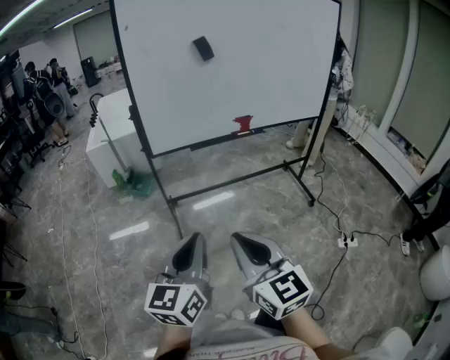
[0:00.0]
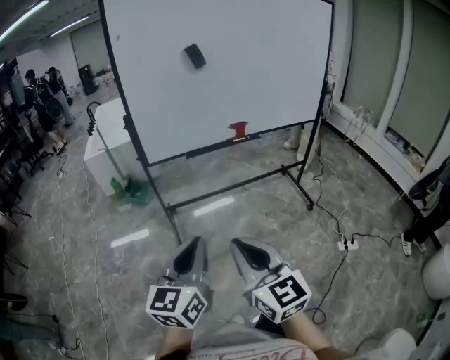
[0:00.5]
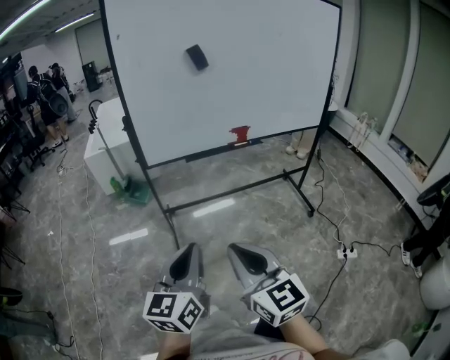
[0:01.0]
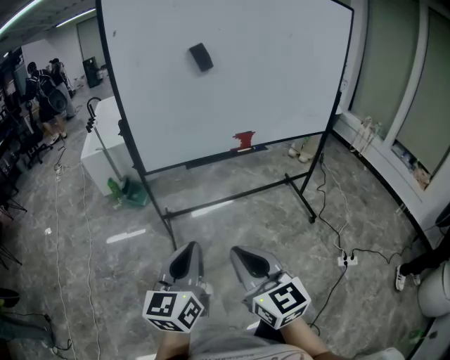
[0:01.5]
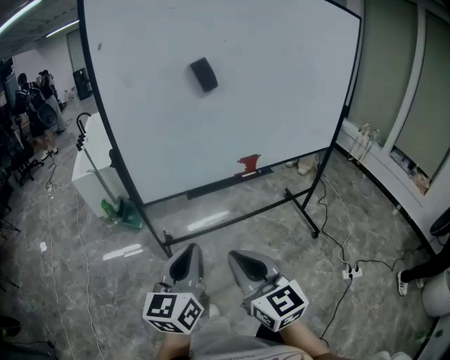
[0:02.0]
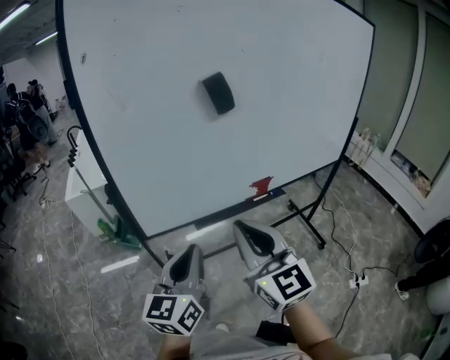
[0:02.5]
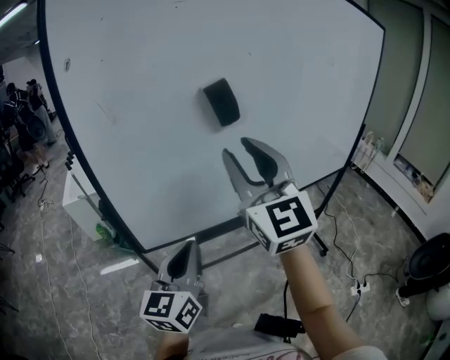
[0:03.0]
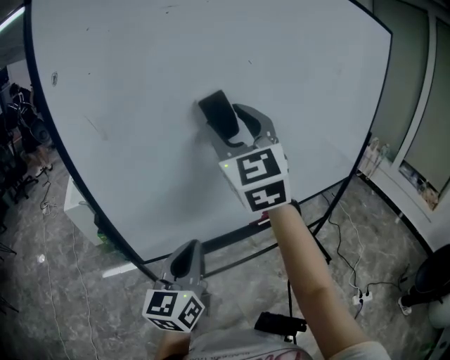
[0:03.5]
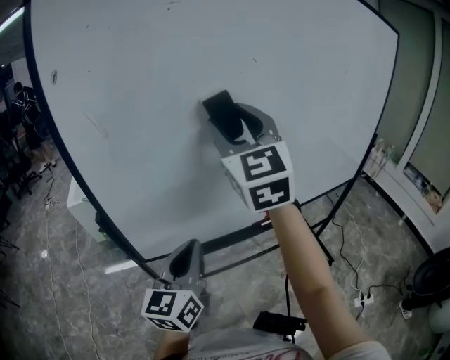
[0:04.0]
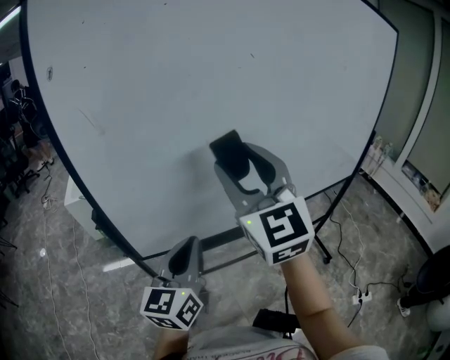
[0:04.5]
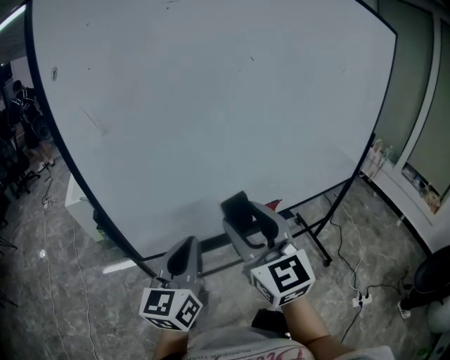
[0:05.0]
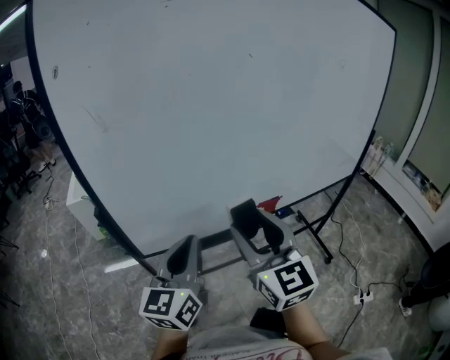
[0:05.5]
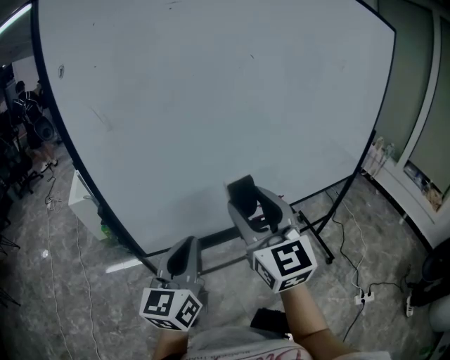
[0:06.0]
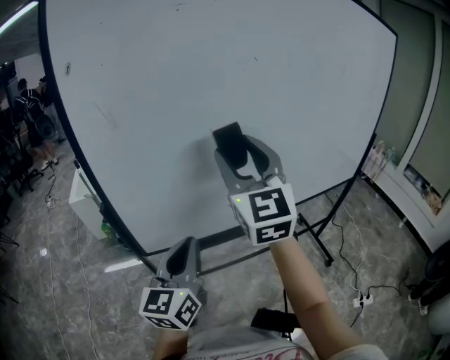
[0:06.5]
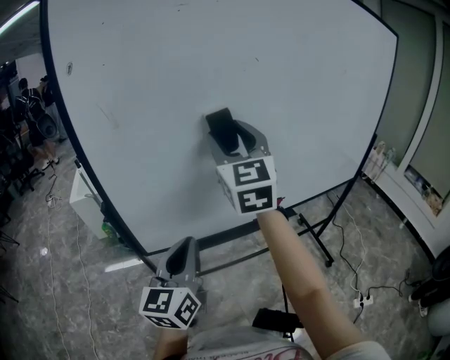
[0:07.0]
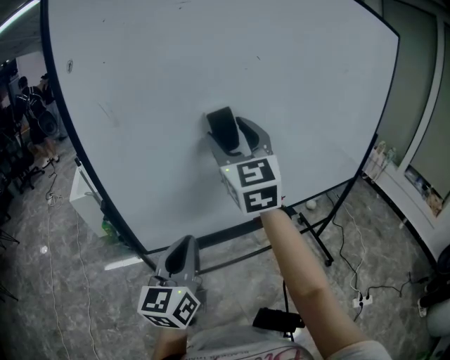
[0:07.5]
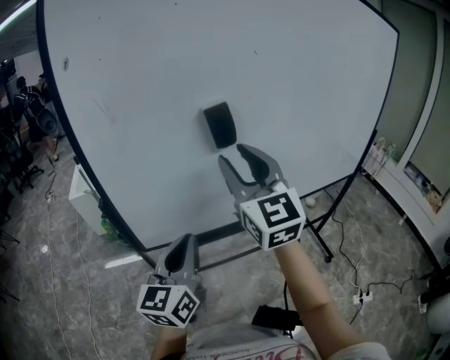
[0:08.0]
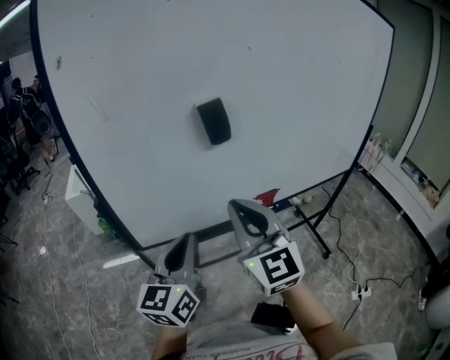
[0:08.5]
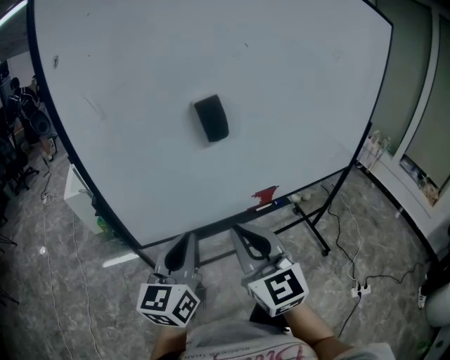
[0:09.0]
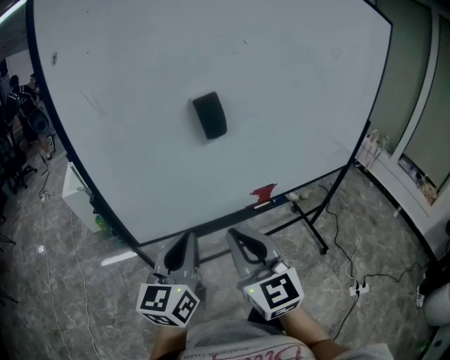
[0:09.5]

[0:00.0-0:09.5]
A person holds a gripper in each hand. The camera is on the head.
0:00.0 to 0:02.0: The grippers both shift forward by about 20 cm.
0:02.0 to 0:04.0: The left gripper is displaced forward by some 20 cm. Meanwhile the right gripper goes about 50 cm forward and upward, turns by some 30 degrees, and opens.
0:04.0 to 0:05.5: The right gripper moves downward and backward, about 20 cm, and swivels some 20 degrees.
0:05.5 to 0:07.5: The right gripper heads forward and upward, covering roughly 20 cm.
0:07.5 to 0:09.5: The right gripper is displaced backward and downward by some 25 cm, and closes its fingers.

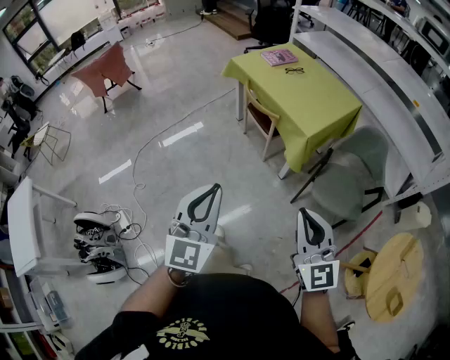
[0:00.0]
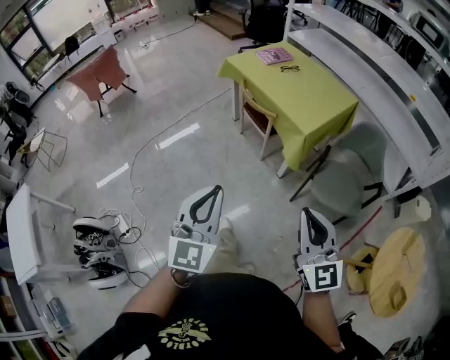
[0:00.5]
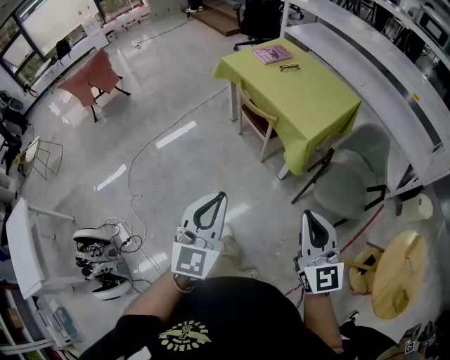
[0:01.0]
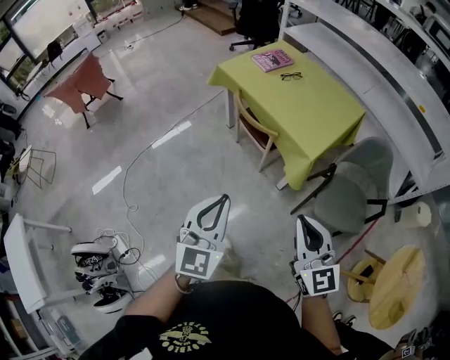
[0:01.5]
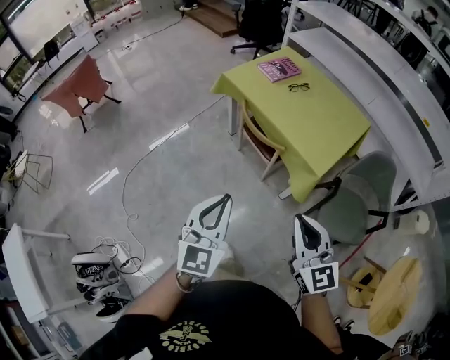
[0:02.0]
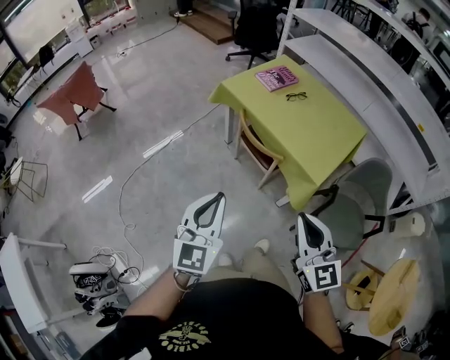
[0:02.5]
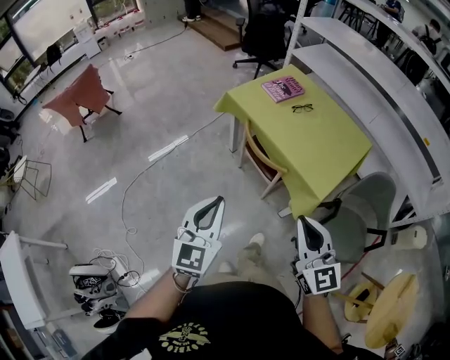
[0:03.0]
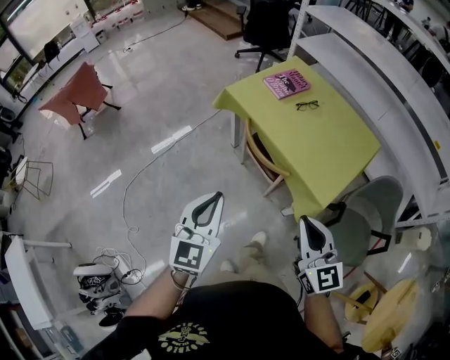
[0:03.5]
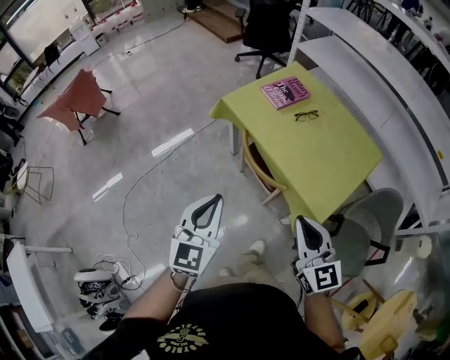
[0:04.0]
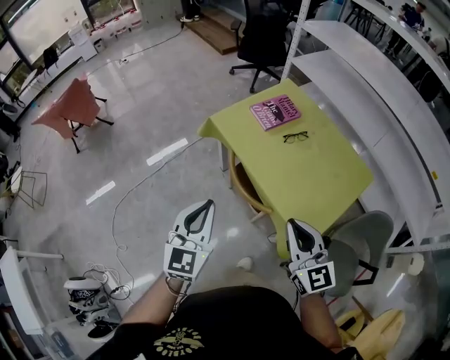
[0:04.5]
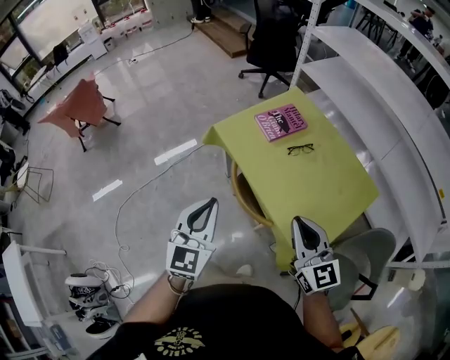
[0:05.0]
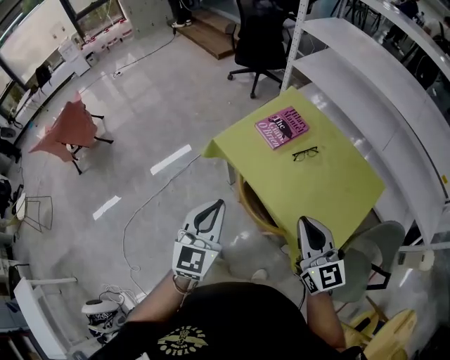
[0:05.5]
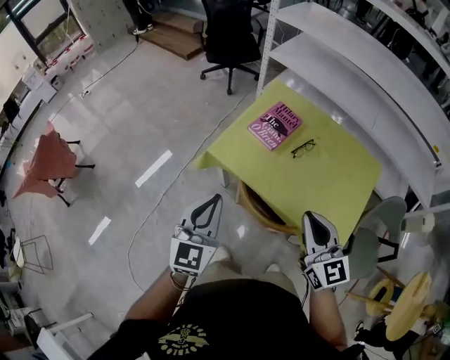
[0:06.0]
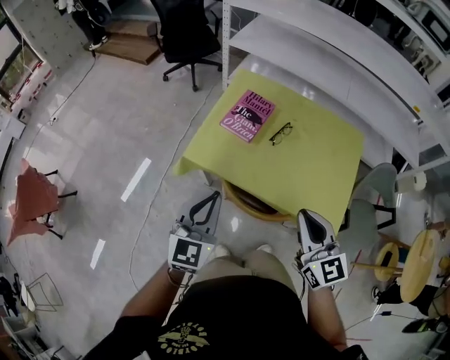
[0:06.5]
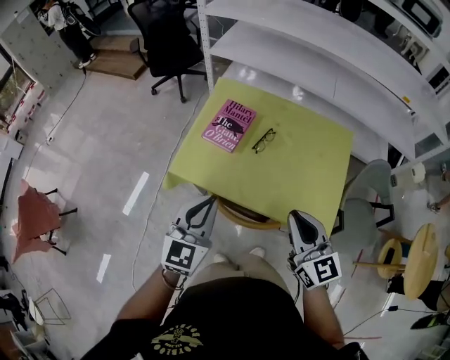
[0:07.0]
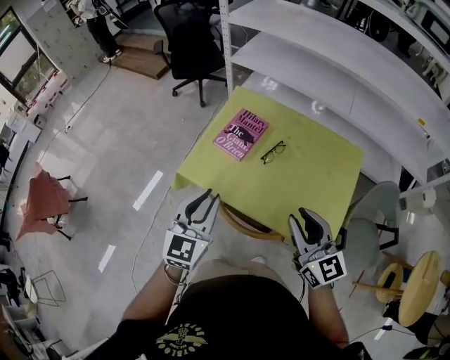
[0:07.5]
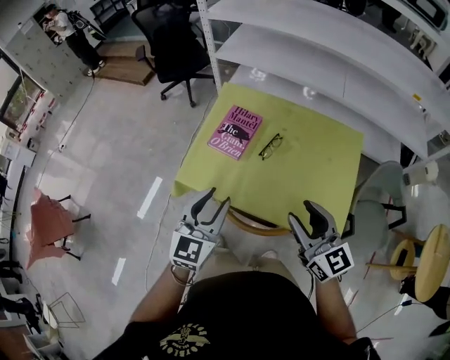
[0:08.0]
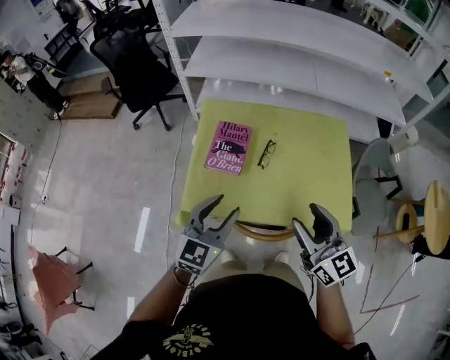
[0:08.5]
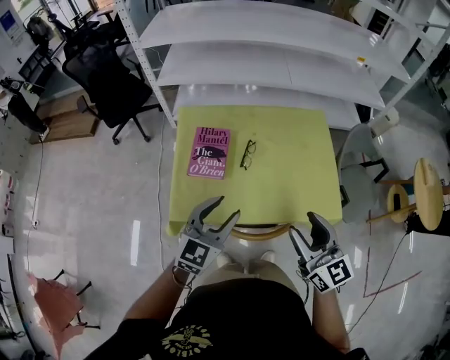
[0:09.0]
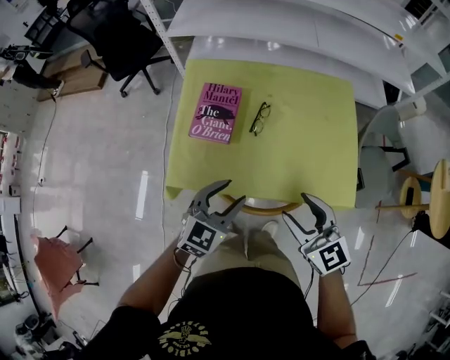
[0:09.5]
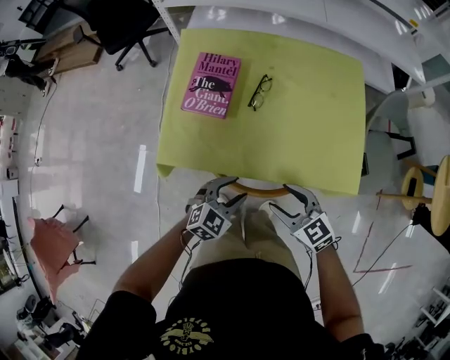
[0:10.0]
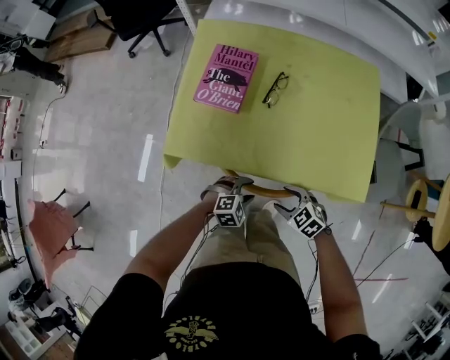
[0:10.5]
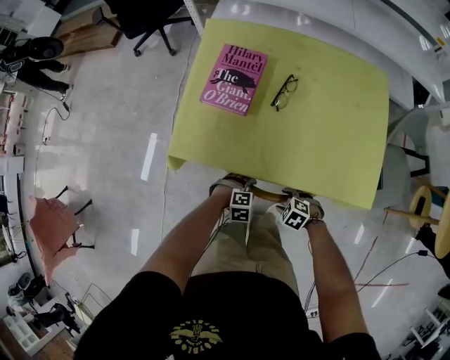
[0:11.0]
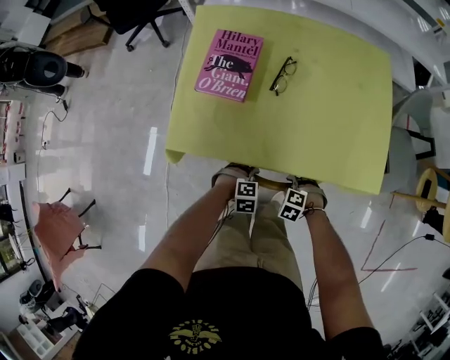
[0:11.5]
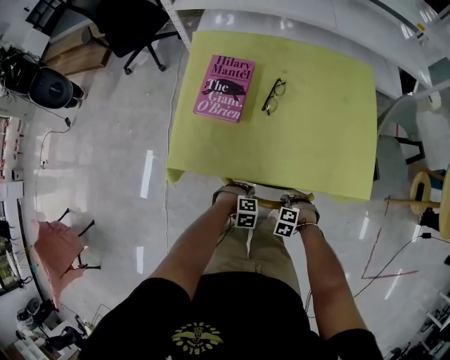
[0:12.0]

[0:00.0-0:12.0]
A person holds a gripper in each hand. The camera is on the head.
0:00.0 to 0:02.0: The grippers both shift forward by approximately 25 cm.
0:02.0 to 0:04.0: Both grippers move forward, some 20 cm.
0:04.0 to 0:06.0: Both grippers move forward, approximately 30 cm.
0:06.0 to 0:08.0: The left gripper travels to the right and forward by about 15 cm, rotates about 20 degrees, and opens up, while the right gripper goes some 10 cm to the right and forward, and opens its fingers.
0:08.0 to 0:10.0: The two grippers go about 25 cm downward. The right gripper rotates roughly 30 degrees; the left gripper changes its angle by approximately 50 degrees.
0:10.0 to 0:12.0: The two grippers go some 25 cm downward. The right gripper points its fingers some 50 degrees further downward; the left gripper points its fingers approximately 40 degrees further downward.

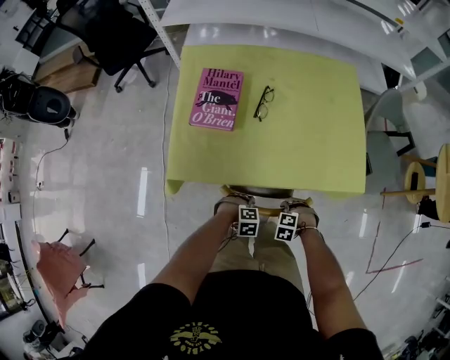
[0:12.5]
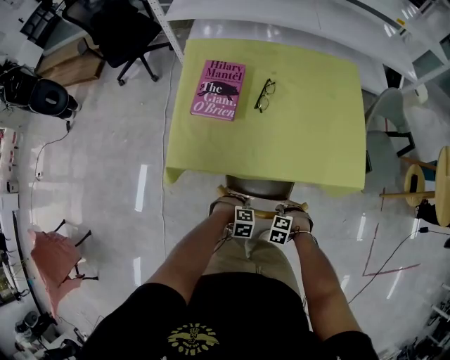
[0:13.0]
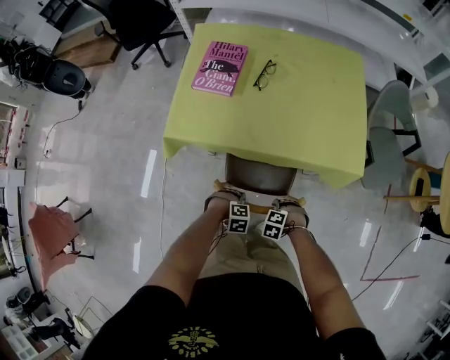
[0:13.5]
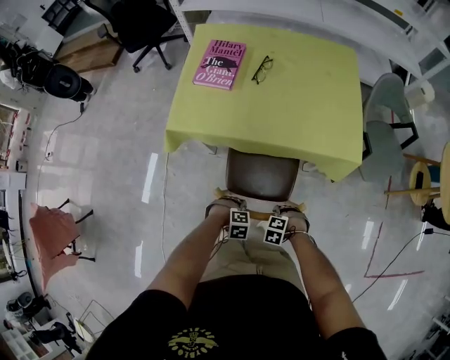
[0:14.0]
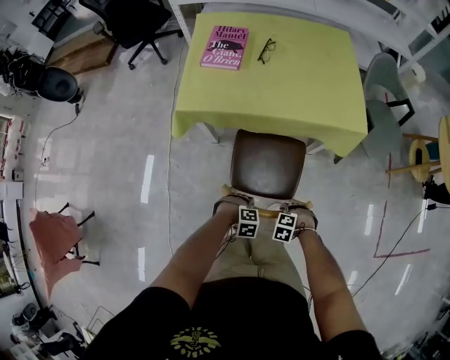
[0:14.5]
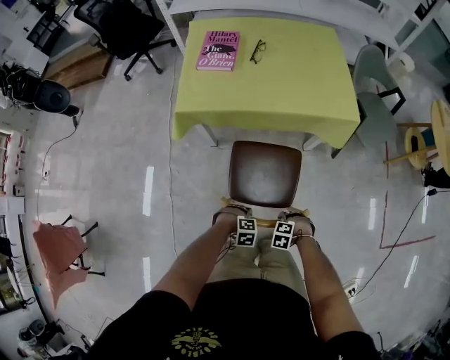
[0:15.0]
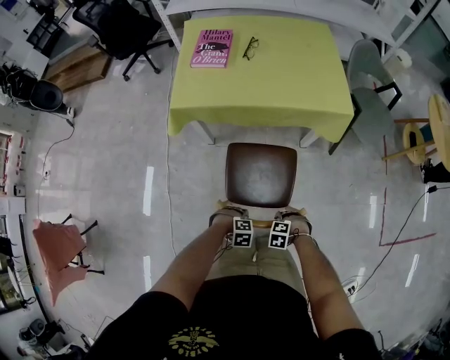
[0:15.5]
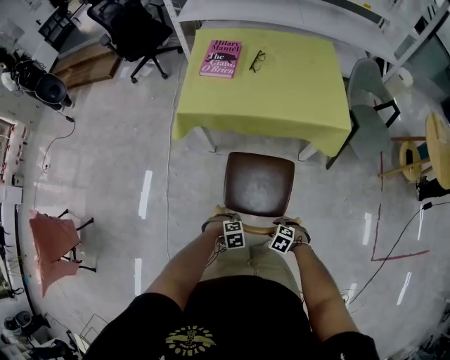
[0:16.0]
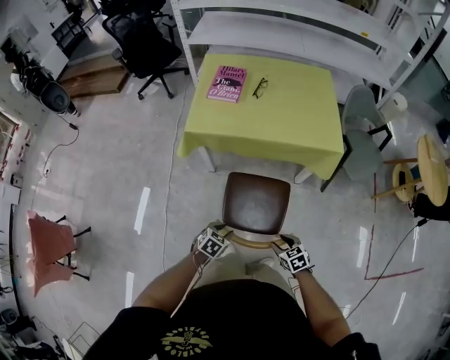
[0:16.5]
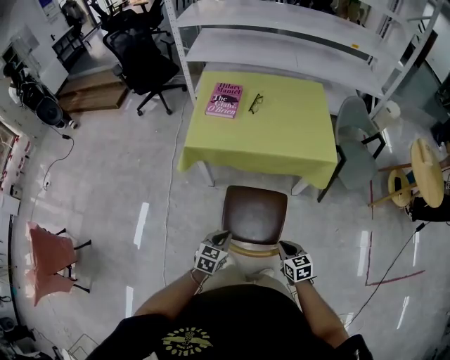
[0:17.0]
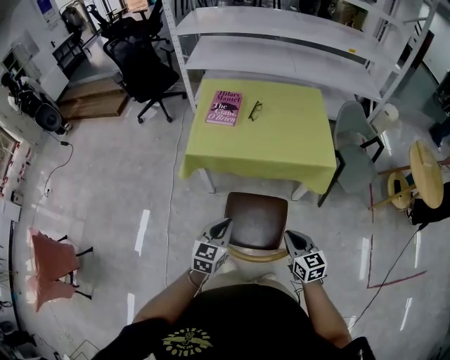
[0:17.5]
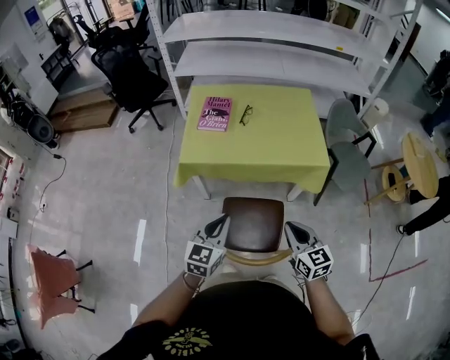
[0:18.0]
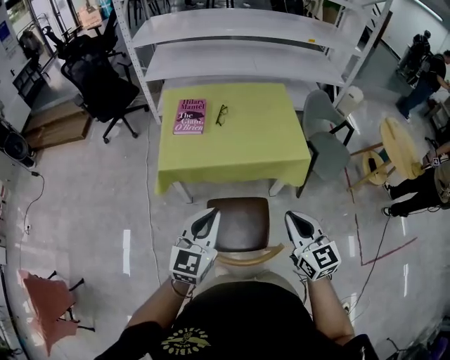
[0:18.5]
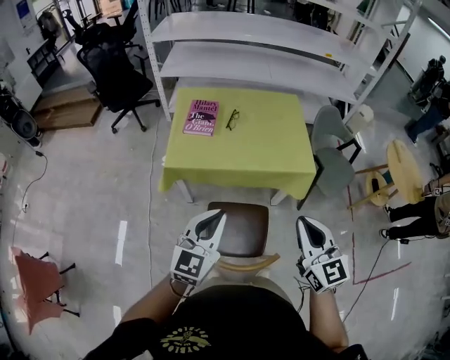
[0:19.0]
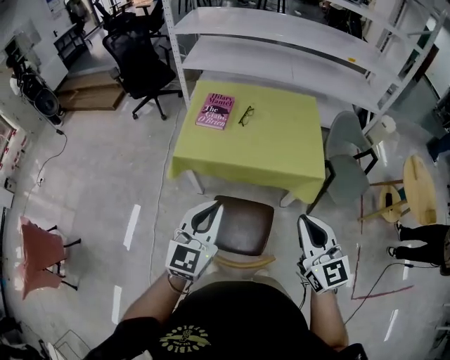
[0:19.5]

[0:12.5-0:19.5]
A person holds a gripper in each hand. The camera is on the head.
0:12.5 to 0:14.5: The left gripper ends up roughly 25 cm from where it was; the right gripper shifts by roughly 25 cm.
0:14.5 to 0:16.0: The left gripper changes place by about 10 cm. Meanwhile the right gripper changes place by about 10 cm.
0:16.0 to 0:17.5: The grippers both shift upward by about 30 cm. The right gripper points its fingers about 50 degrees further upward, and closes up, while the left gripper points its fingers about 50 degrees further upward, and closes up.
0:17.5 to 0:19.5: The grippers both shift upward by approximately 20 cm. The right gripper swivels roughly 20 degrees, while the left gripper swivels approximately 20 degrees.
